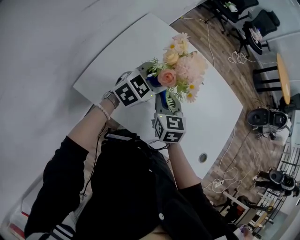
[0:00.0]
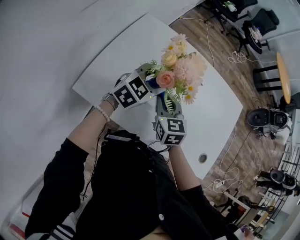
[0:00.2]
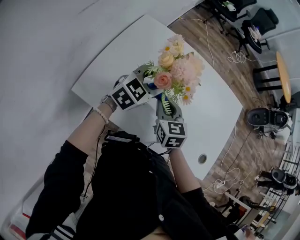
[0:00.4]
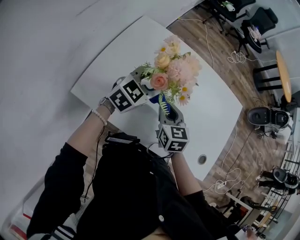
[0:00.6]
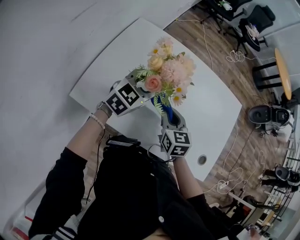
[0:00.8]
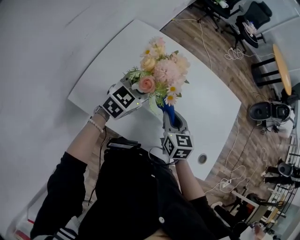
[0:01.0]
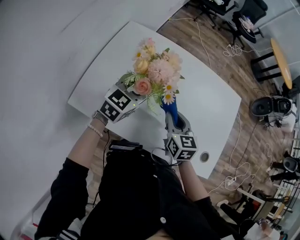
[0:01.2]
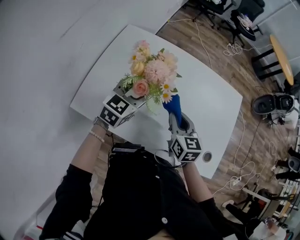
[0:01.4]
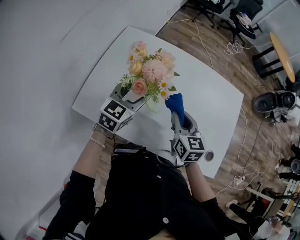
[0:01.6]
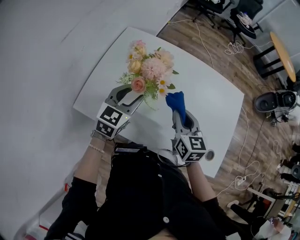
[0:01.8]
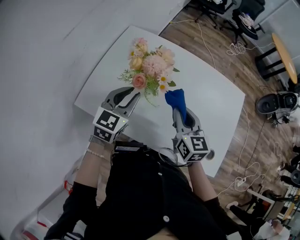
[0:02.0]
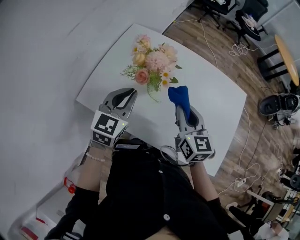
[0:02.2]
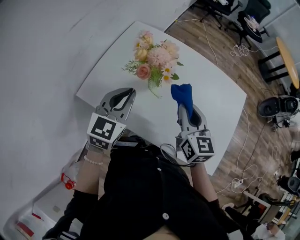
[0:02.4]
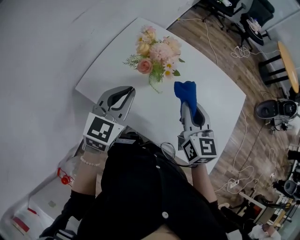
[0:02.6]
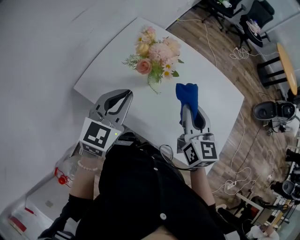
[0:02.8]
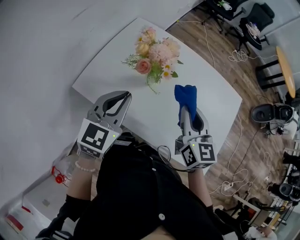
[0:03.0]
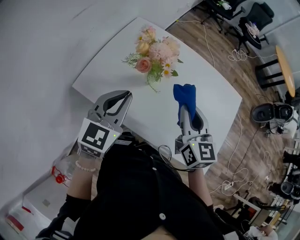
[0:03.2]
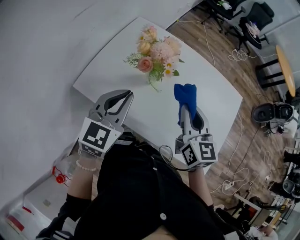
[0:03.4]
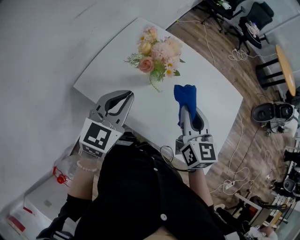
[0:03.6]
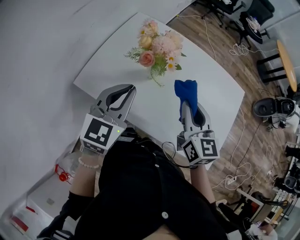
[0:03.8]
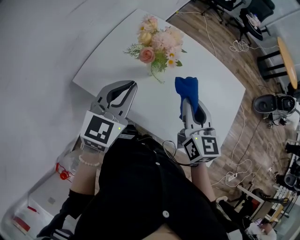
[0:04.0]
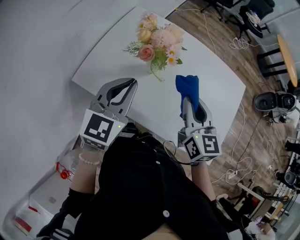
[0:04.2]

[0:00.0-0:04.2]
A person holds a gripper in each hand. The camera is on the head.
0:00.0 to 0:01.4: The right gripper moves to the right, roughly 15 cm.
0:01.4 to 0:02.8: The left gripper goes approximately 15 cm backward and upward, and closes its fingers. Meanwhile the right gripper shifts some 10 cm upward.
0:02.8 to 0:04.2: The grippers make only small movements.

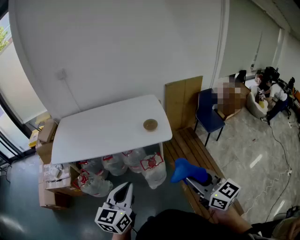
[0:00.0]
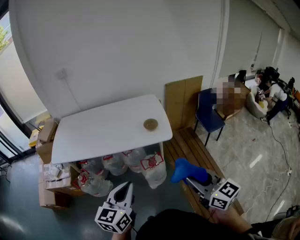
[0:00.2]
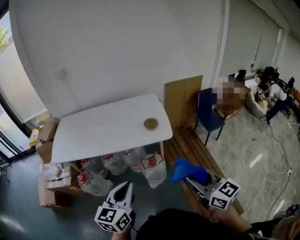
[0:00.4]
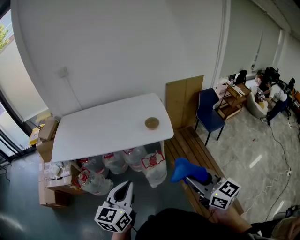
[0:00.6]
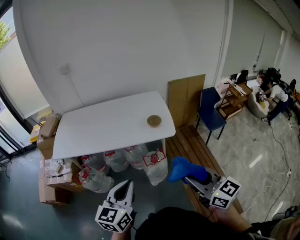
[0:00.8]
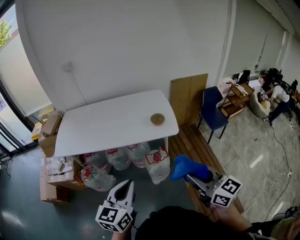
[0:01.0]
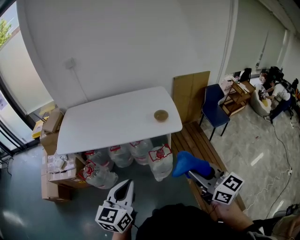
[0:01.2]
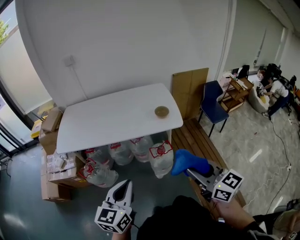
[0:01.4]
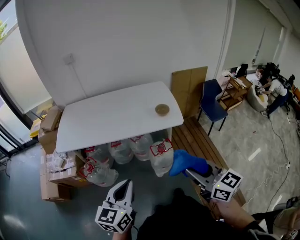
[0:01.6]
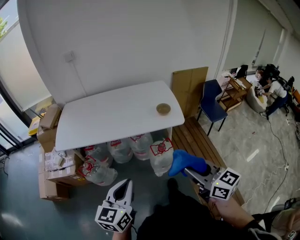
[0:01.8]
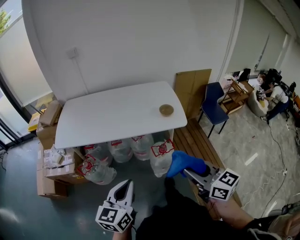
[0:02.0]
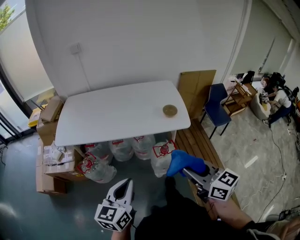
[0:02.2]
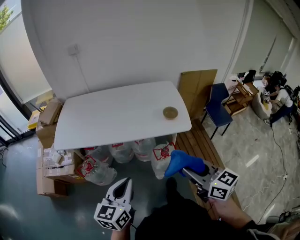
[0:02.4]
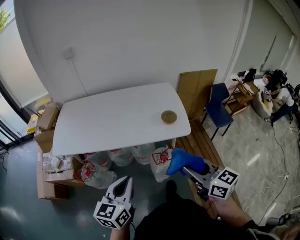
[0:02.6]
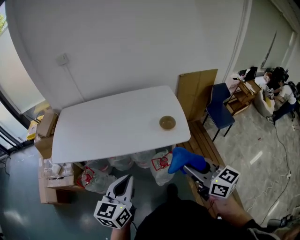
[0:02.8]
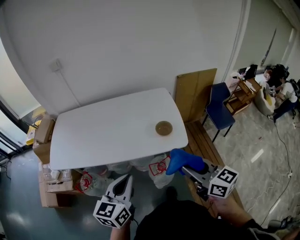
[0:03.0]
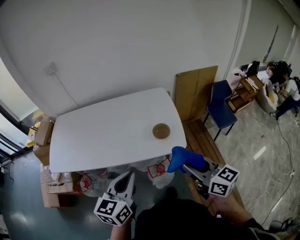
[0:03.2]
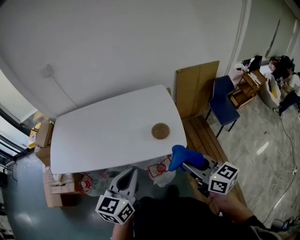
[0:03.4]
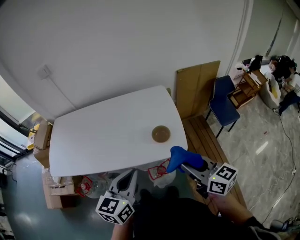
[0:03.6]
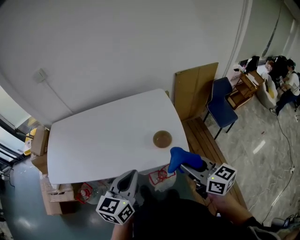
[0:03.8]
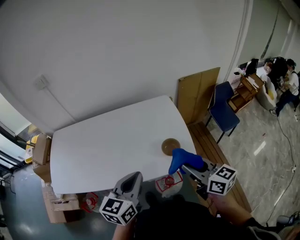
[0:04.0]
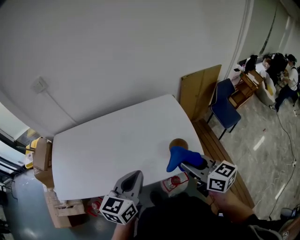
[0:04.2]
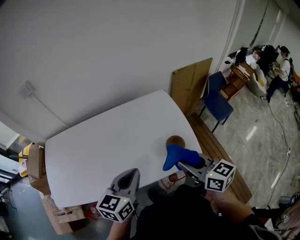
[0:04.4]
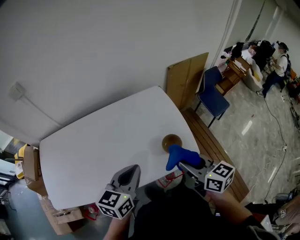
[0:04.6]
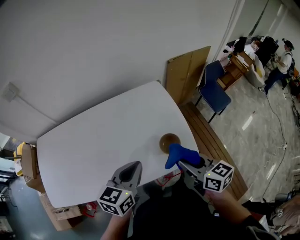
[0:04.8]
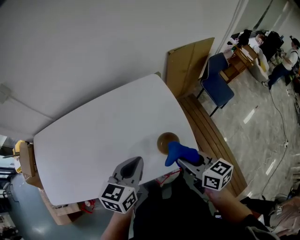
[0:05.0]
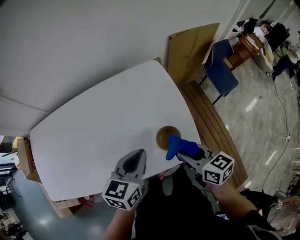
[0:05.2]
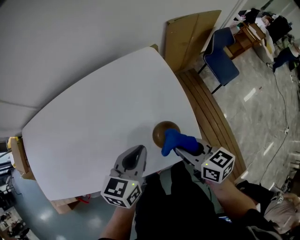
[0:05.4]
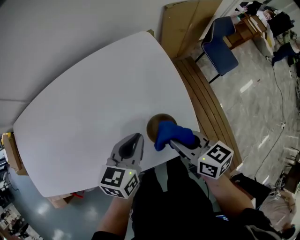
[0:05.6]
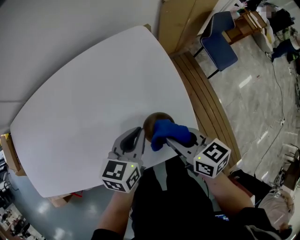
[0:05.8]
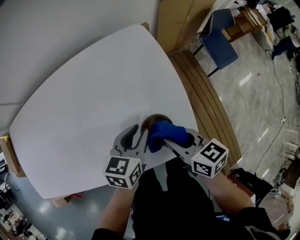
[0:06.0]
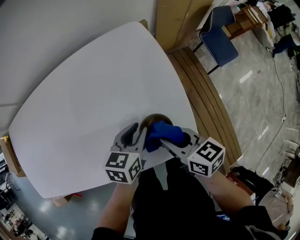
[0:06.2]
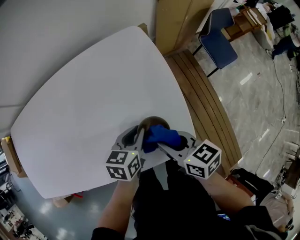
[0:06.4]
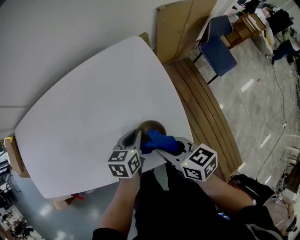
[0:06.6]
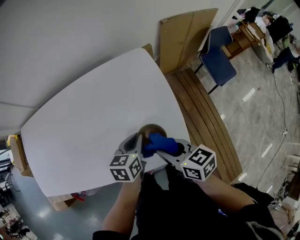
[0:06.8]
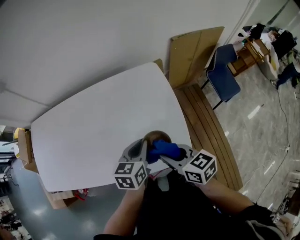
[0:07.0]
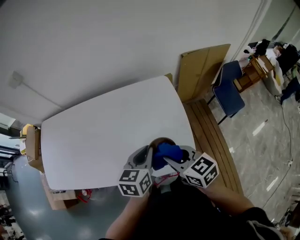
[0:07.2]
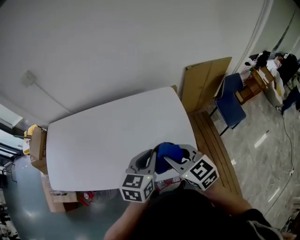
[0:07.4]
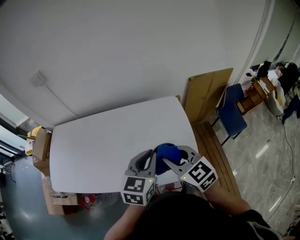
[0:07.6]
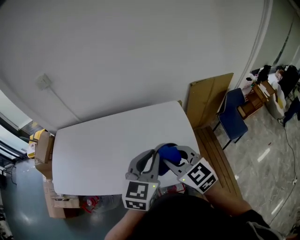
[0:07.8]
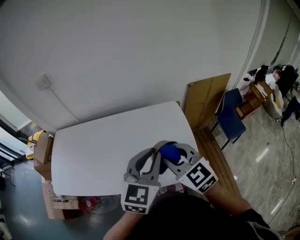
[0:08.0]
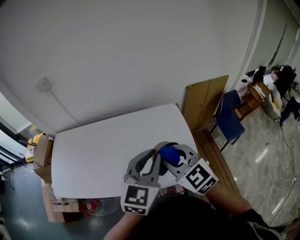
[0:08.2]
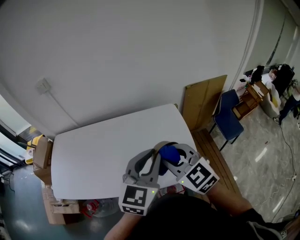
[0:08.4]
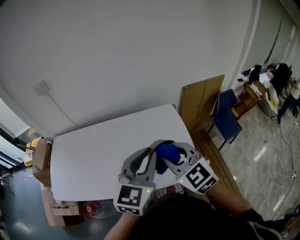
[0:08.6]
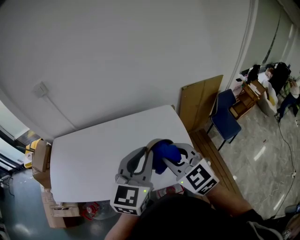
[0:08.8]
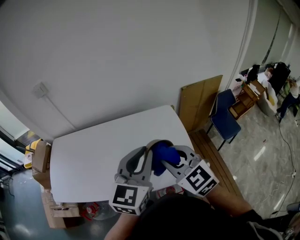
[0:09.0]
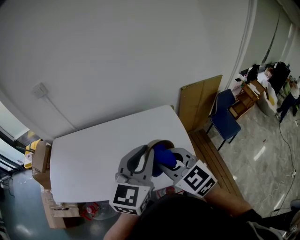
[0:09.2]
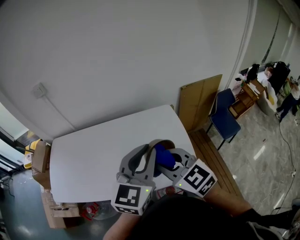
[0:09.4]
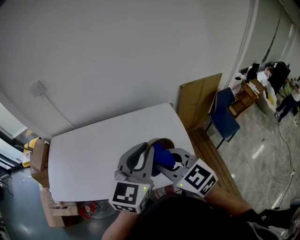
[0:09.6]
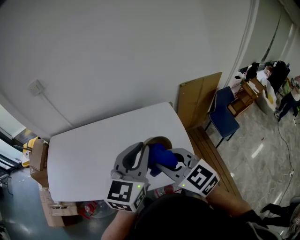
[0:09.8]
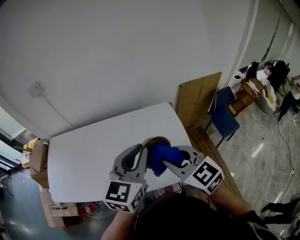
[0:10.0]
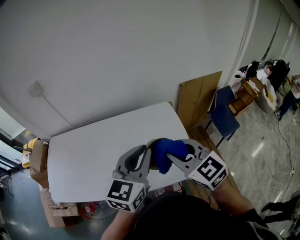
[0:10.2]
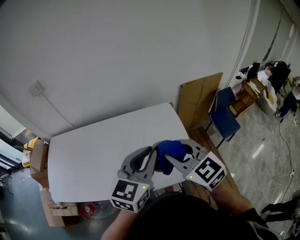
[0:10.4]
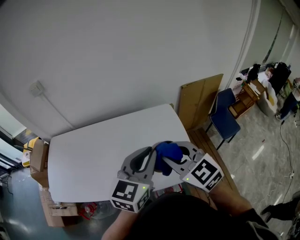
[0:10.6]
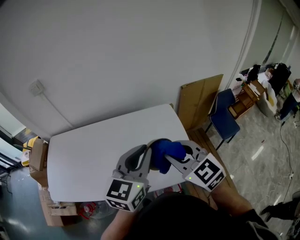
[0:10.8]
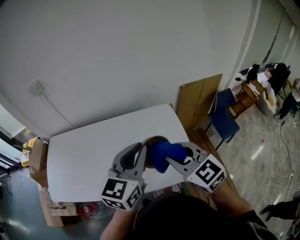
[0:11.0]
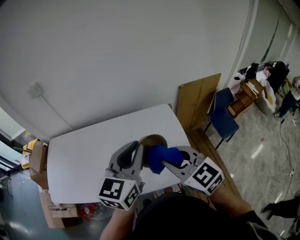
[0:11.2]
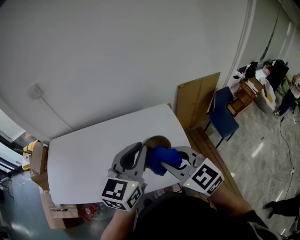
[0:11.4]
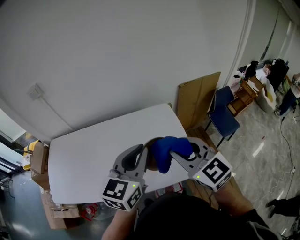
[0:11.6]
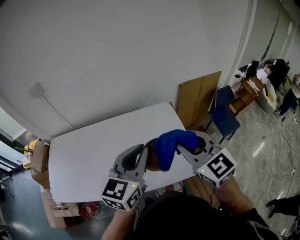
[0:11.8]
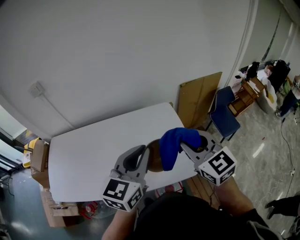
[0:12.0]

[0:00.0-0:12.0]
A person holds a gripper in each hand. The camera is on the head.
0:00.0 to 0:01.6: Both grippers move to the left, approximately 10 cm.
0:01.6 to 0:03.0: Both grippers move forward, some 20 cm.
0:03.0 to 0:04.4: The grippers both shift forward by approximately 25 cm.
0:04.4 to 0:06.0: The left gripper moves downward, to the right and forward, about 30 cm, and opens up, while the right gripper heads downward and forward, covering approximately 25 cm.
0:06.0 to 0:07.6: The left gripper shifts some 25 cm upward, and turns by about 30 degrees. Meanwhile the right gripper goes approximately 25 cm upward and to the left, and twists some 40 degrees counterclockwise, seen from behind.
0:07.6 to 0:09.0: The left gripper heads upward, covering about 10 cm. Meanwhile the right gripper is displaced upward by roughly 5 cm.
0:09.0 to 0:10.4: The grippers make only small movements.
0:10.4 to 0:12.0: The right gripper travels to the right by approximately 5 cm.

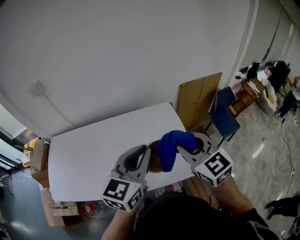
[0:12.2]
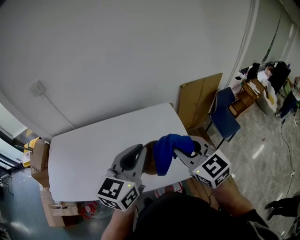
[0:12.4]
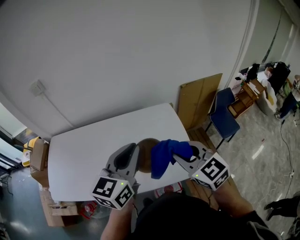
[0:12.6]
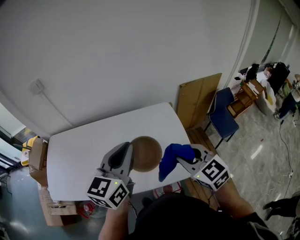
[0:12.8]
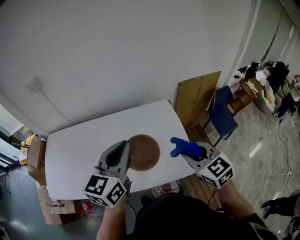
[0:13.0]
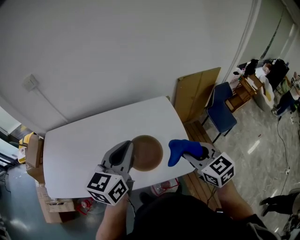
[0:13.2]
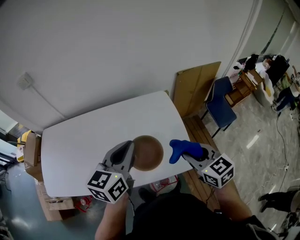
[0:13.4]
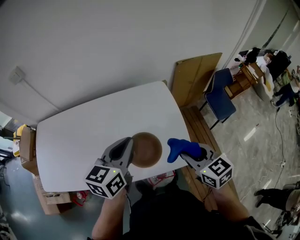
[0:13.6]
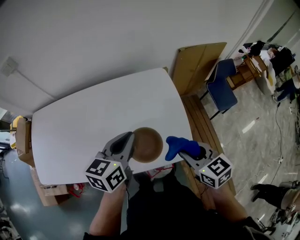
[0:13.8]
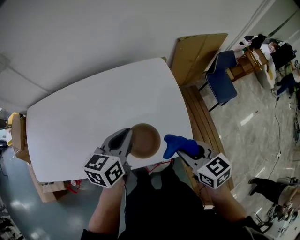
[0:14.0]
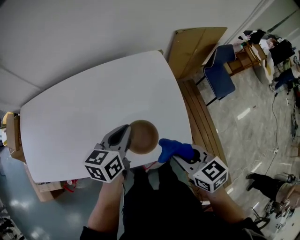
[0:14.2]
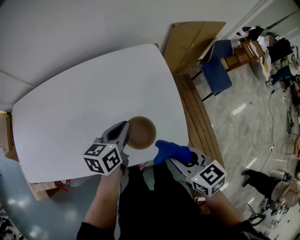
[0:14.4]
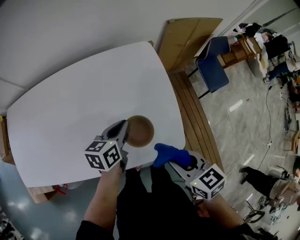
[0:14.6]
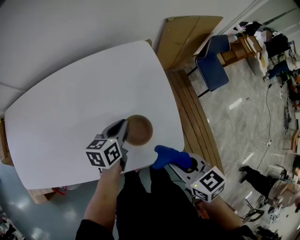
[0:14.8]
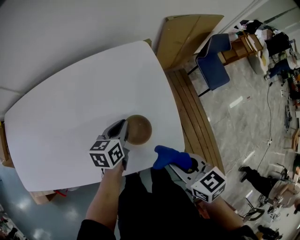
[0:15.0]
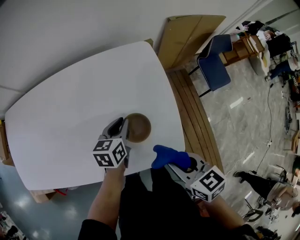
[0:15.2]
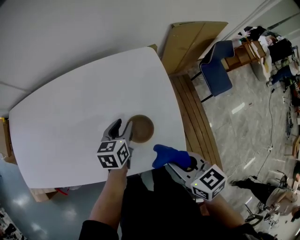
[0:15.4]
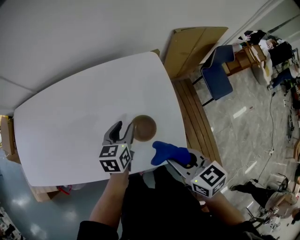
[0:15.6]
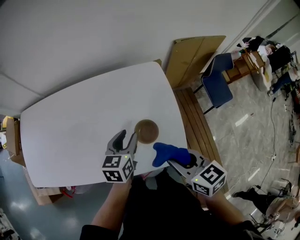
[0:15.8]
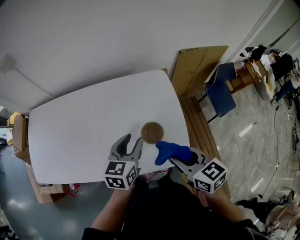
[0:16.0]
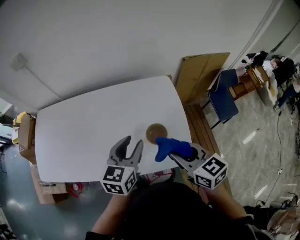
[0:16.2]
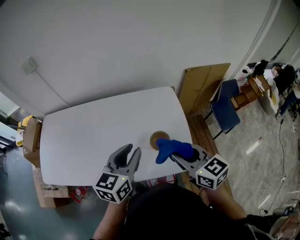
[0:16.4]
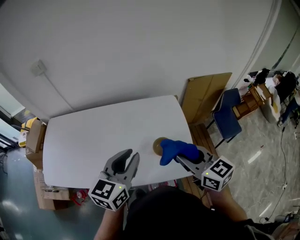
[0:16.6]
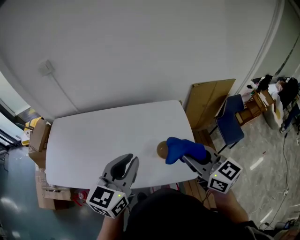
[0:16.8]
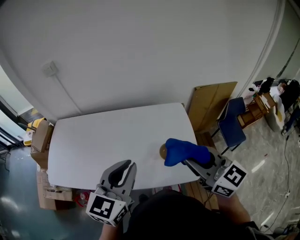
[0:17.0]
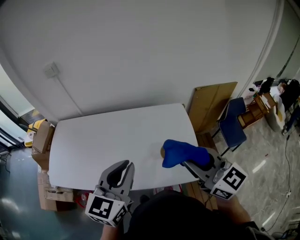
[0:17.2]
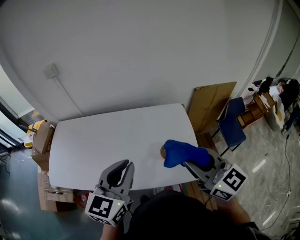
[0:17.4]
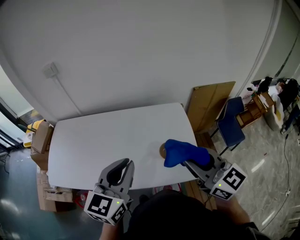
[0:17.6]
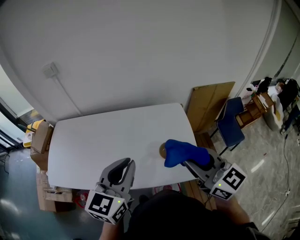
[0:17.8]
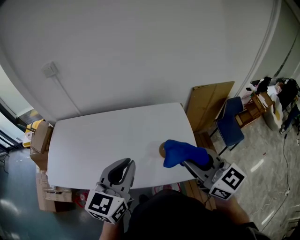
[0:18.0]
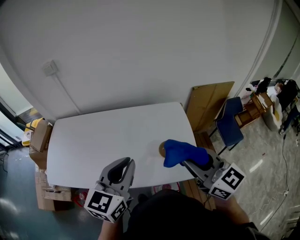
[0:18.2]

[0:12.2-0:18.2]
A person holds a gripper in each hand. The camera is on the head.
0:12.2 to 0:13.8: Both grippers travel together downward, roughly 15 cm. The right gripper rotates approximately 30 degrees, while the left gripper turns by about 20 degrees.
0:13.8 to 0:15.2: The left gripper is displaced downward by roughly 20 cm; the right gripper moves downward, some 10 cm.
0:15.2 to 0:16.6: The right gripper heads upward, covering some 20 cm, and changes its angle by about 30 degrees; the left gripper shifts some 30 cm upward, and swivels roughly 30 degrees.
0:16.6 to 0:18.2: The left gripper ends up approximately 10 cm from where it was. The right gripper goes some 10 cm upward.

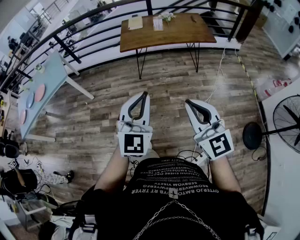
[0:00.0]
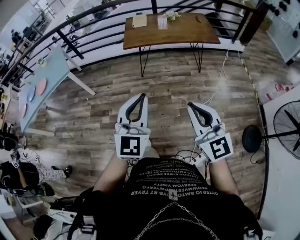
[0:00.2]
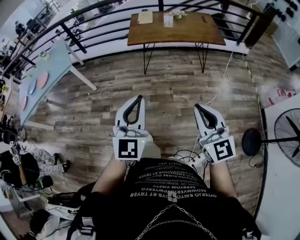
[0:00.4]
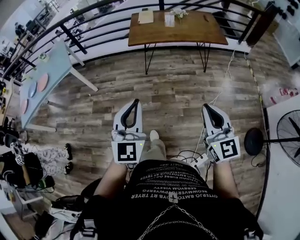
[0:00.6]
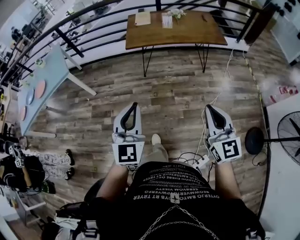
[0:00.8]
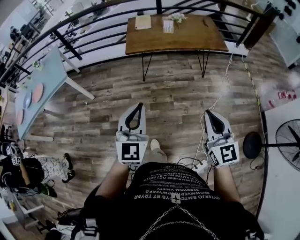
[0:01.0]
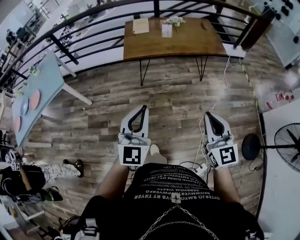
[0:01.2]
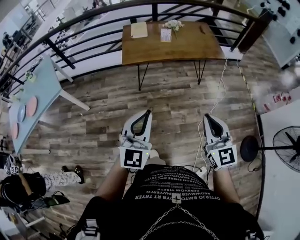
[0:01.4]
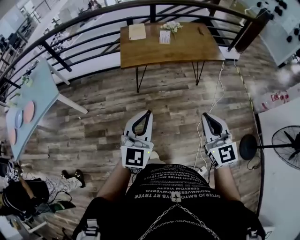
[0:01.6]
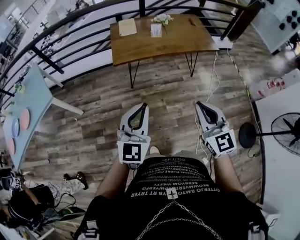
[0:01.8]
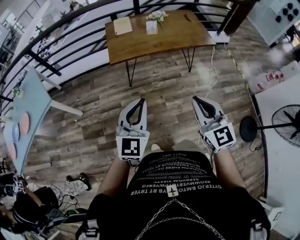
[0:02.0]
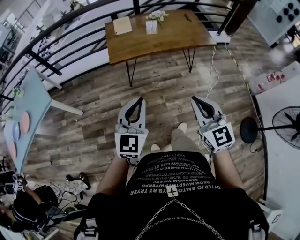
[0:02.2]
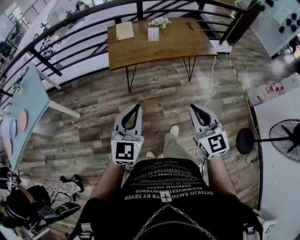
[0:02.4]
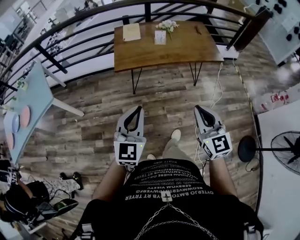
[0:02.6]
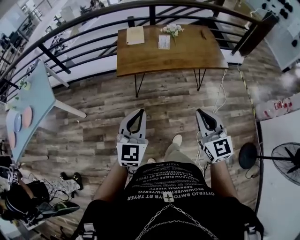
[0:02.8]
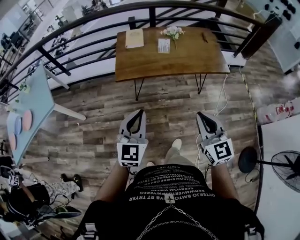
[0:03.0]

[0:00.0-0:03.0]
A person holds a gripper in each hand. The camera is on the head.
0:00.0 to 0:01.6: The right gripper is displaced forward by approximately 20 cm, while the left gripper shifts roughly 20 cm forward and to the left.
0:01.6 to 0:03.0: Both grippers travel together forward, some 20 cm.
